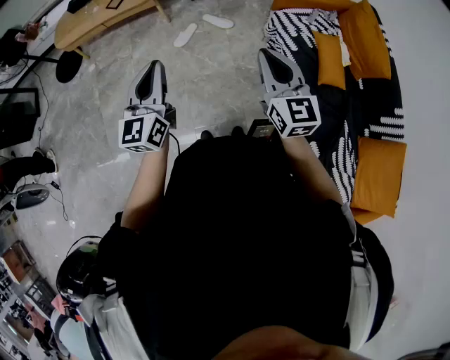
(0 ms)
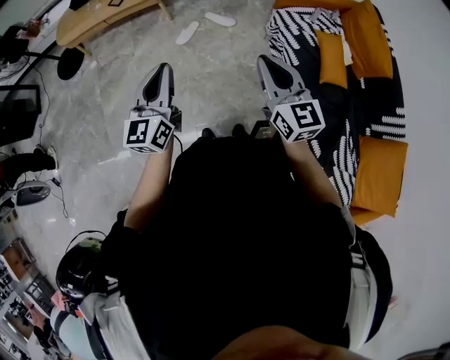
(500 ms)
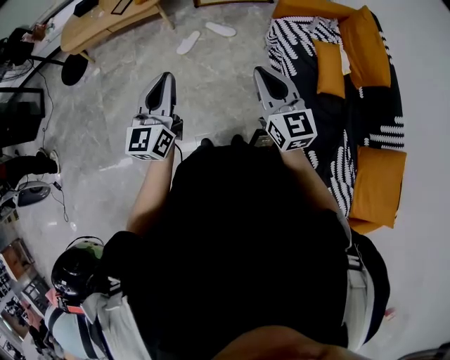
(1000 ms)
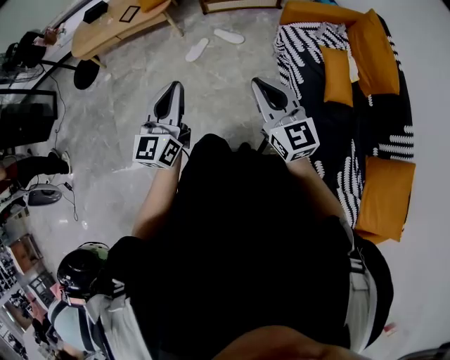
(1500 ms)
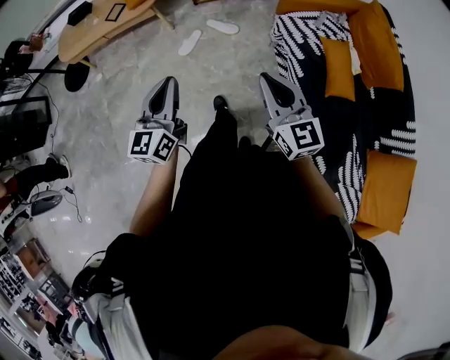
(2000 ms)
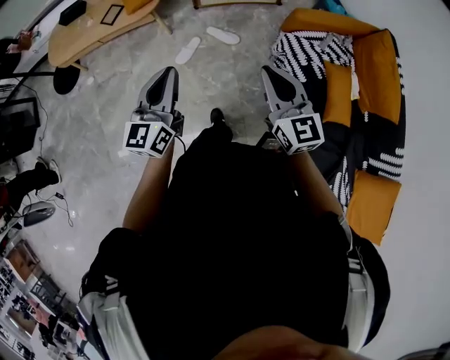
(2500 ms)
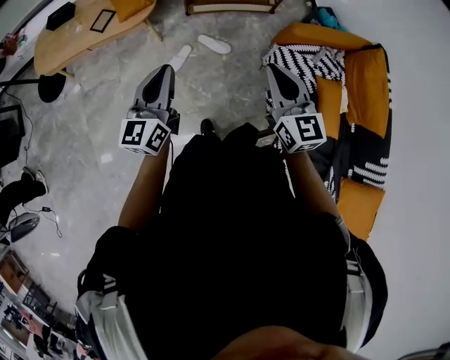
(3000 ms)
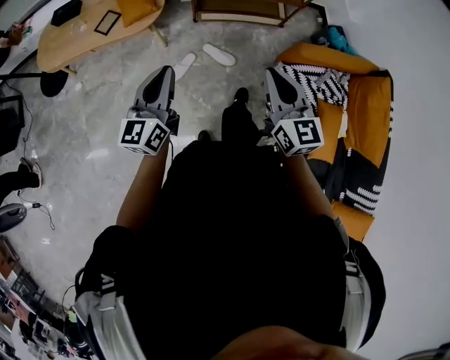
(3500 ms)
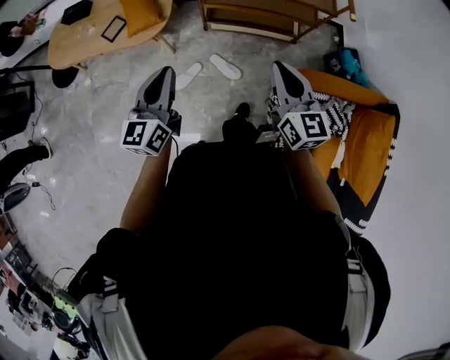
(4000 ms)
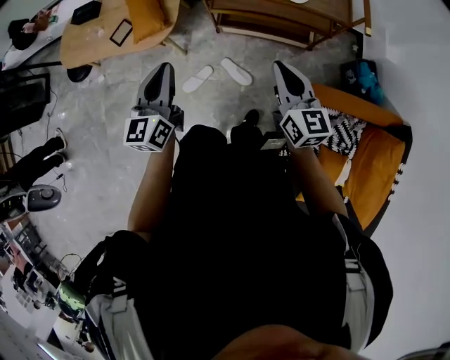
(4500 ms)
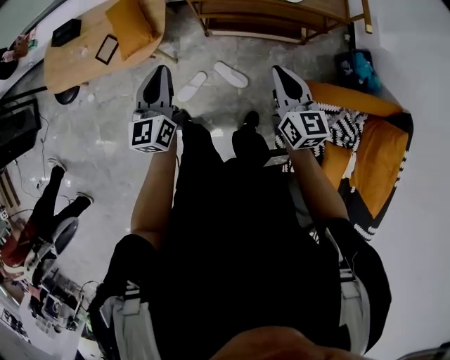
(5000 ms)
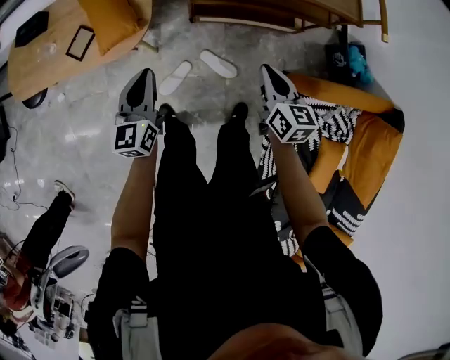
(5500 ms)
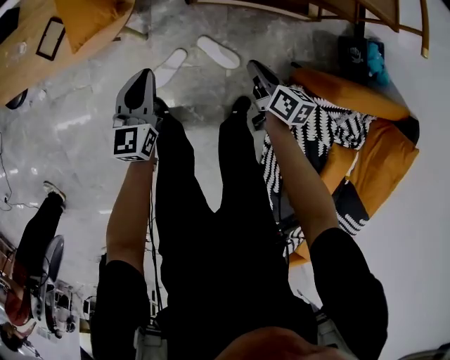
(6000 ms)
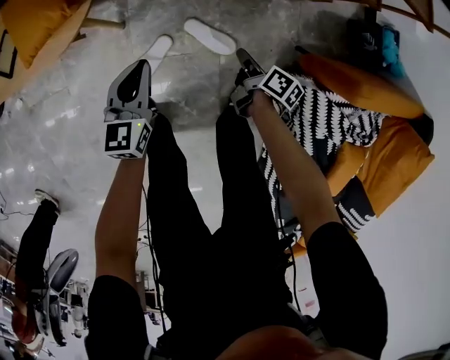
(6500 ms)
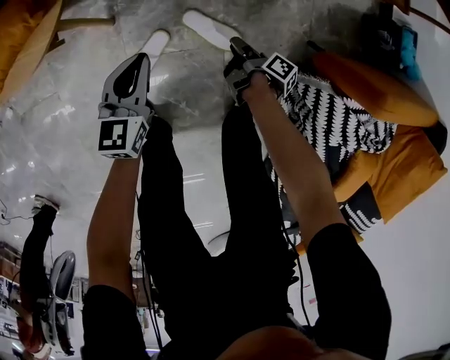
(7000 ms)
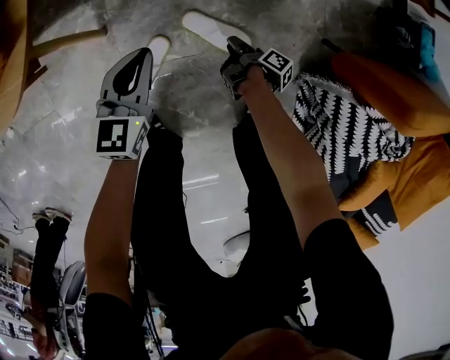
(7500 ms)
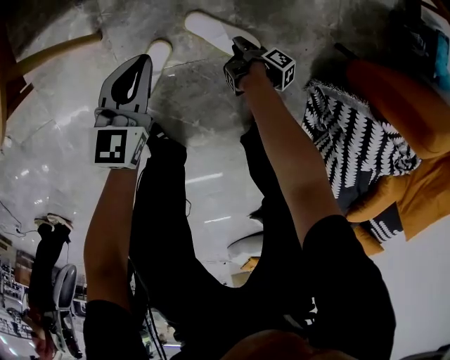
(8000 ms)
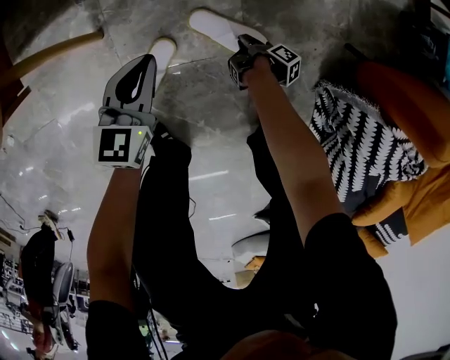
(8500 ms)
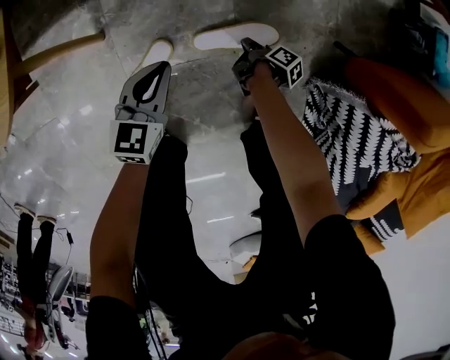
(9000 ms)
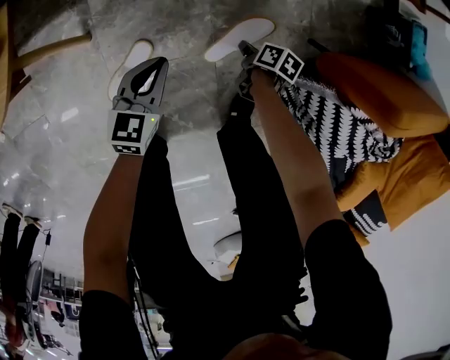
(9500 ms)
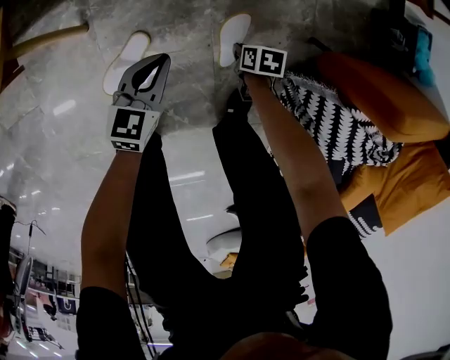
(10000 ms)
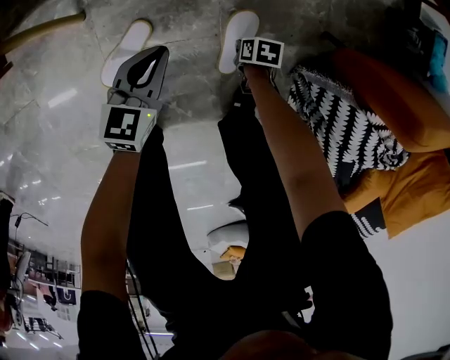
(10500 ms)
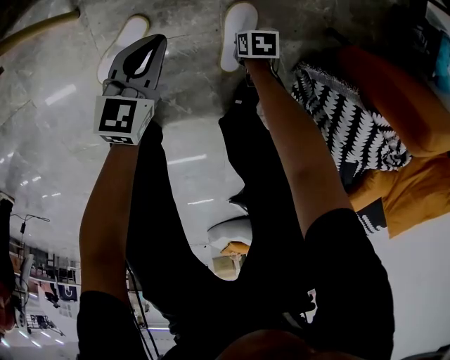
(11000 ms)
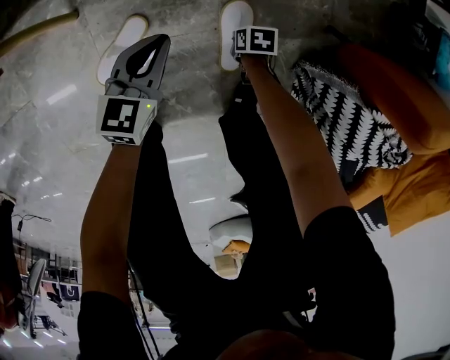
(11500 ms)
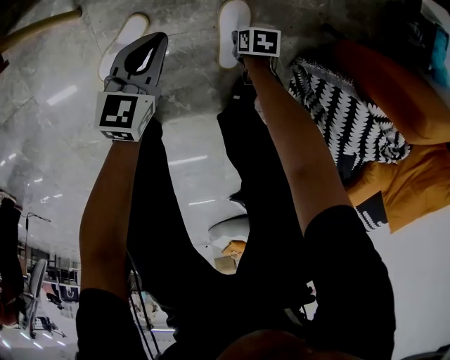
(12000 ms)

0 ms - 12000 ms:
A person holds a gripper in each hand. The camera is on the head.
0 ms - 2000 ms: The left gripper travels to the right and forward by roughly 10 cm. Meanwhile the right gripper travels to the right by approximately 5 cm.
2000 ms - 4000 ms: Both grippers are carried forward, approximately 50 cm.
4000 ms - 6000 ms: The left gripper goes about 40 cm downward and forward, while the right gripper heads downward, covering roughly 40 cm, and rolls clockwise, seen from behind, by approximately 40 degrees.
6000 ms - 8000 ms: The right gripper heads downward, covering some 50 cm, rotates around the line of its fingers by roughly 70 degrees, clockwise from behind, and opens up. The left gripper moves downward, approximately 35 cm, and turns by roughly 20 degrees.
8000 ms - 10000 ms: The right gripper heads to the right and upward, covering approximately 10 cm, and rolls counterclockwise, seen from behind, by approximately 70 degrees, while the left gripper goes some 10 cm to the right.
10000 ms - 12000 ms: The right gripper travels downward by roughly 5 cm.

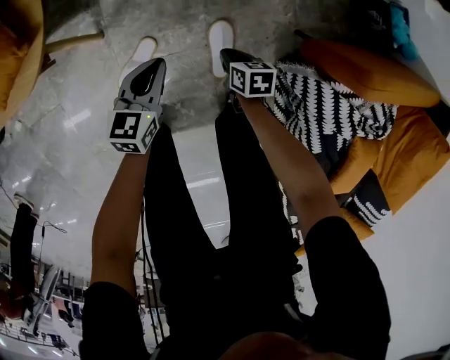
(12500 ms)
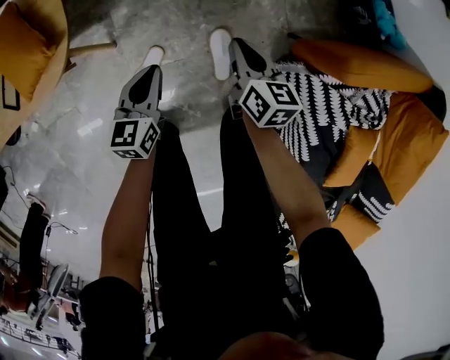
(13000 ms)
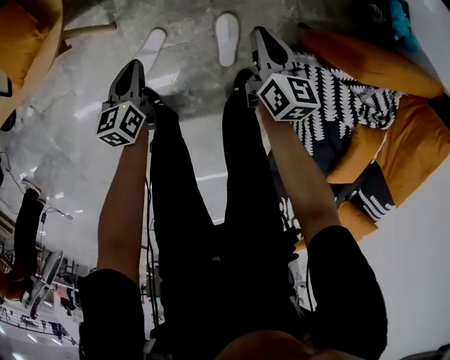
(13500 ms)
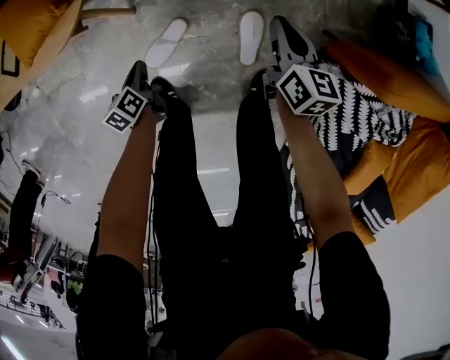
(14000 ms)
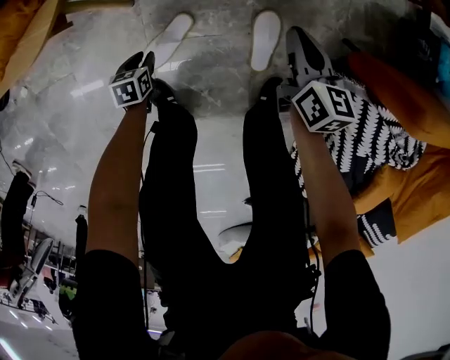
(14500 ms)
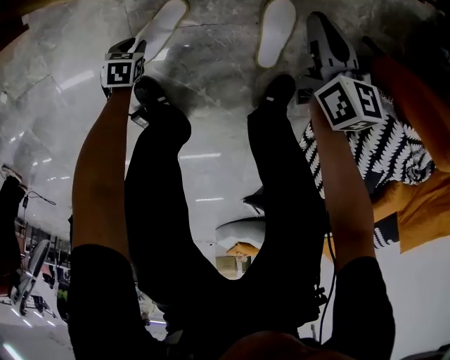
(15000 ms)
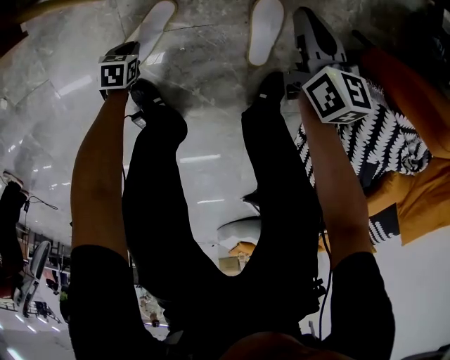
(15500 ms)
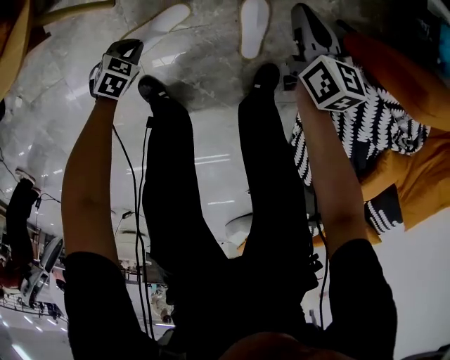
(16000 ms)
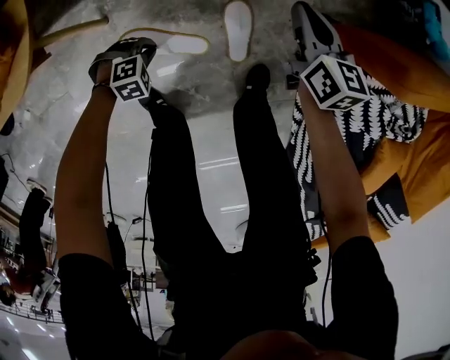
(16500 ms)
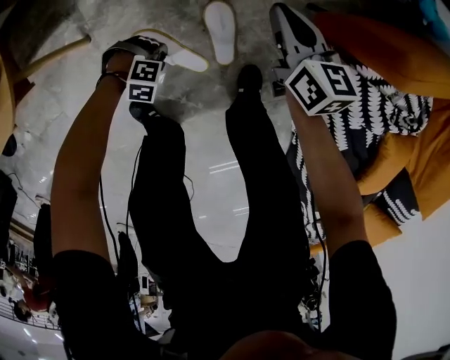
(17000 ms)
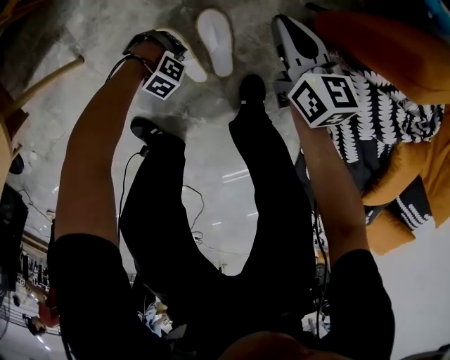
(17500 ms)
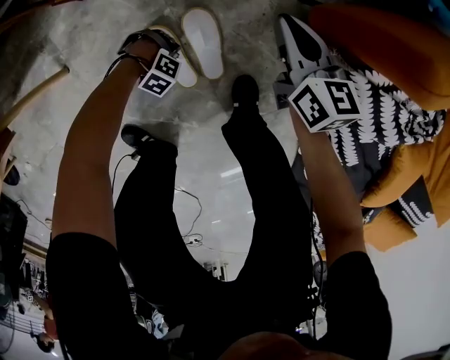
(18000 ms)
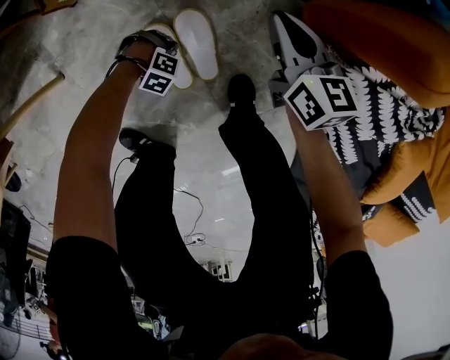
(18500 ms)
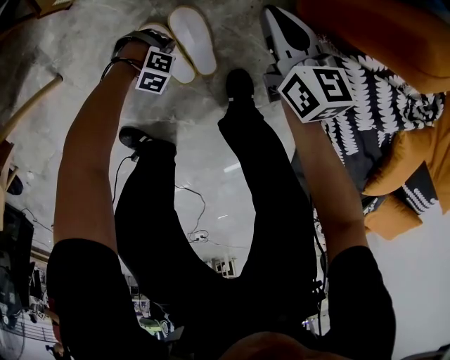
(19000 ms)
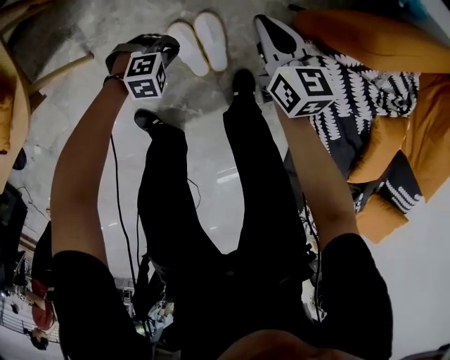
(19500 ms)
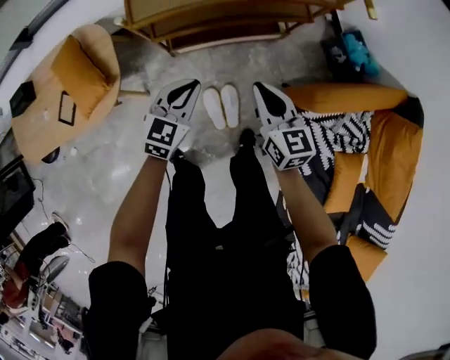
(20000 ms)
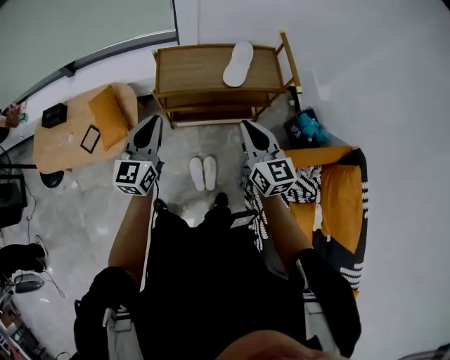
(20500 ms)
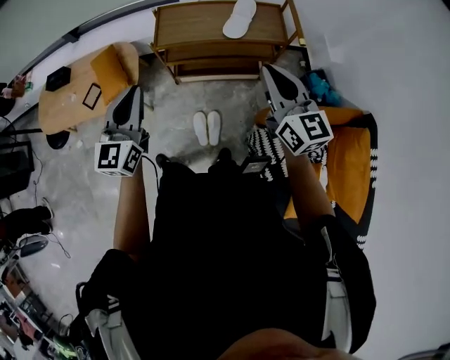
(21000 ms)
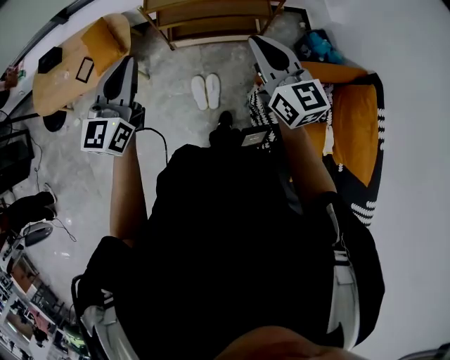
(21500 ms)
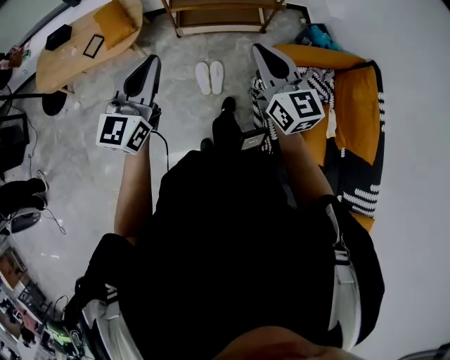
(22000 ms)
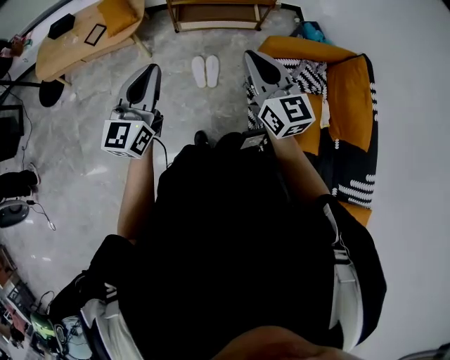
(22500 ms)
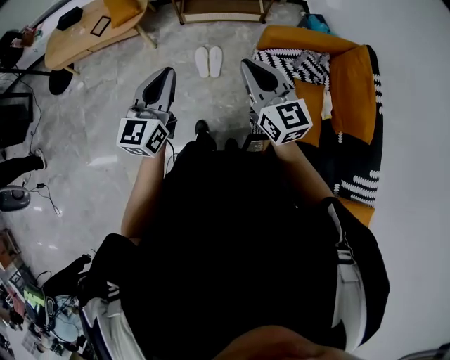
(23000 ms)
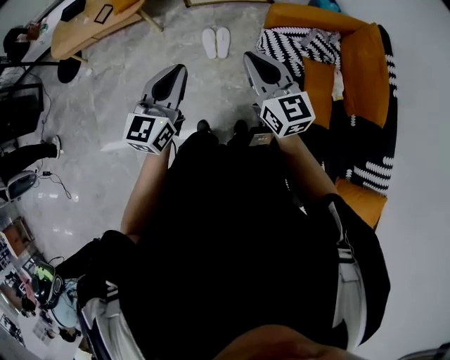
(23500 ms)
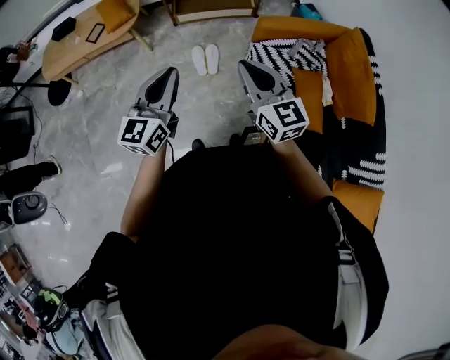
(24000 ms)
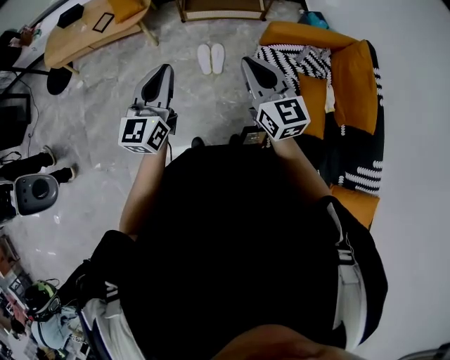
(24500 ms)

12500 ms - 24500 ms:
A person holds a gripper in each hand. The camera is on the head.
12500 ms - 14500 ms: The left gripper is displaced downward and to the left by some 30 cm, tips its fingers downward by about 30 degrees, and opens. Meanwhile the right gripper travels upward and forward by approximately 10 cm, and changes its angle by about 30 degrees.
14500 ms - 16500 ms: The left gripper travels downward and back again, about 15 cm each way, rotates around the line of its fingers by about 100 degrees, clockwise from behind, and closes. Meanwhile the right gripper moves approximately 10 cm downward and comes back.
16500 ms - 18500 ms: The right gripper changes place by about 15 cm; the left gripper travels downward by about 20 cm, and rolls clockwise, seen from behind, by some 50 degrees.
18500 ms - 20500 ms: Both grippers travel together upward, about 80 cm. The right gripper swivels some 30 degrees. Meanwhile the left gripper tips its fingers upward by roughly 70 degrees.
20500 ms - 22500 ms: The grippers both shift backward by about 40 cm.
22500 ms - 24500 ms: Both grippers move backward, approximately 10 cm. The left gripper moves approximately 15 cm to the right and comes back.

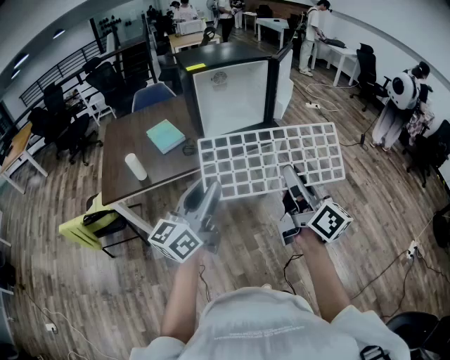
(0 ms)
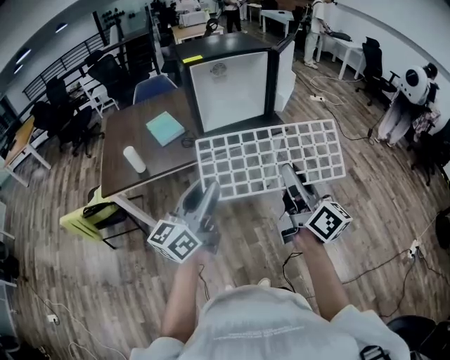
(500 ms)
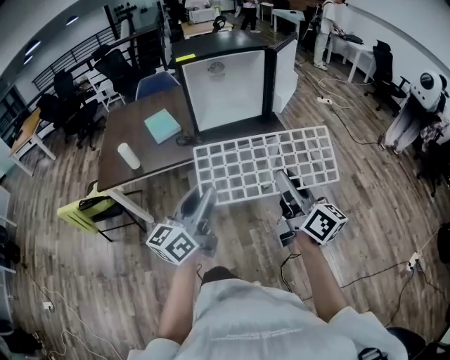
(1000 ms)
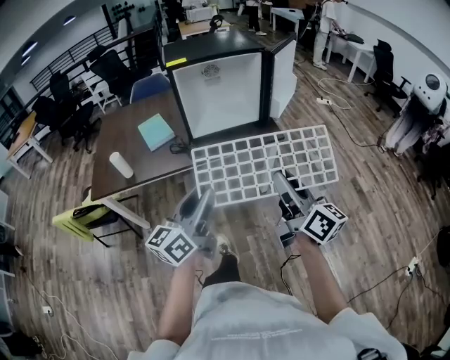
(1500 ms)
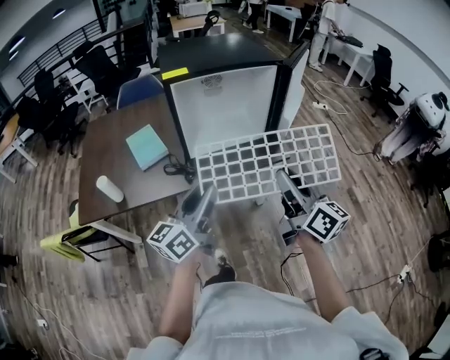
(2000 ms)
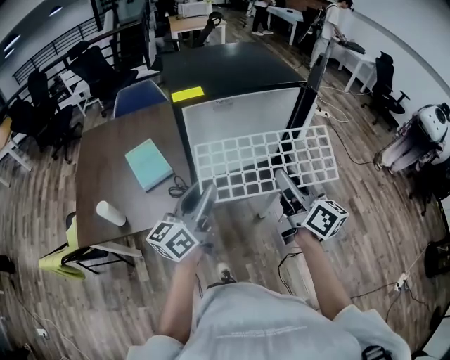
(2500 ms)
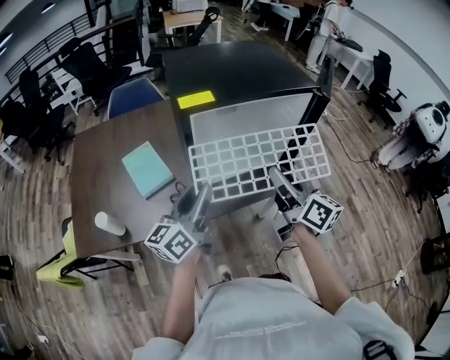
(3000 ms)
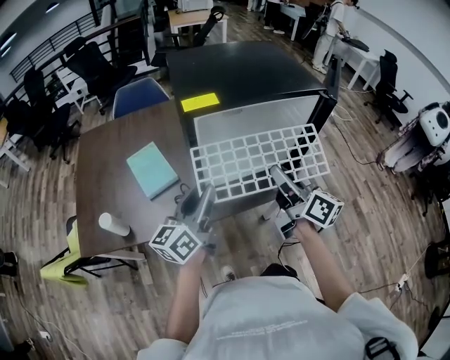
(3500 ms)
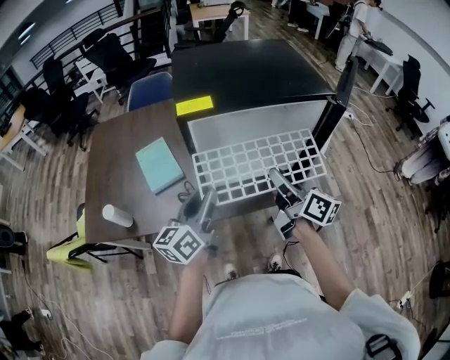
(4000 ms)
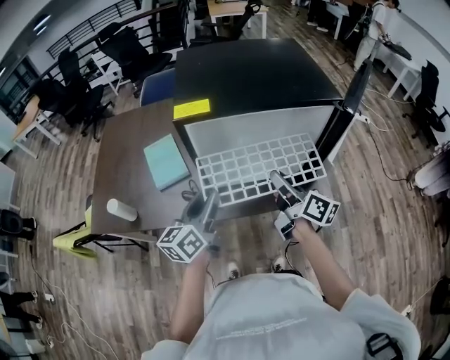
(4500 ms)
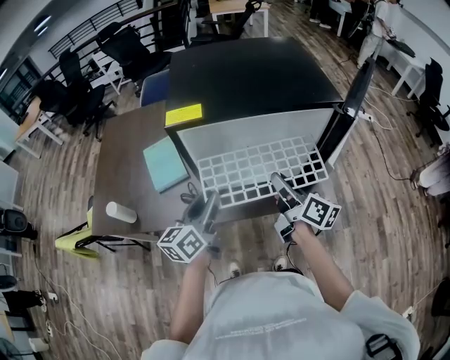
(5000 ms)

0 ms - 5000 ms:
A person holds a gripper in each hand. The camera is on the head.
0 ms - 2500 ms: The grippers both shift forward by roughly 35 cm.
2500 ms - 5000 ms: The left gripper travels forward and downward by about 10 cm, and changes its angle by about 20 degrees. The right gripper goes approximately 20 cm forward and downward, and swivels roughly 20 degrees.
